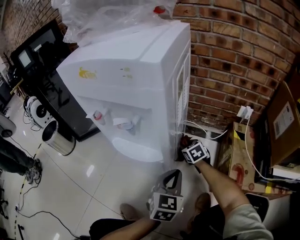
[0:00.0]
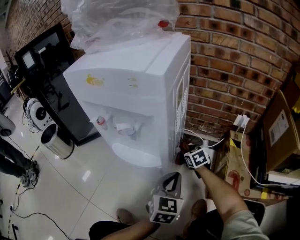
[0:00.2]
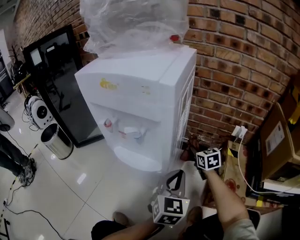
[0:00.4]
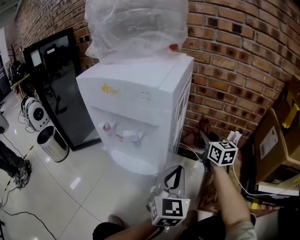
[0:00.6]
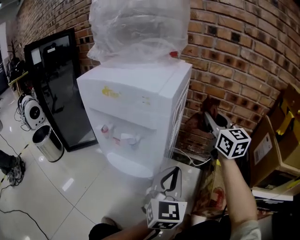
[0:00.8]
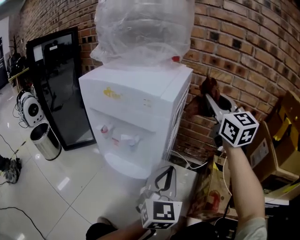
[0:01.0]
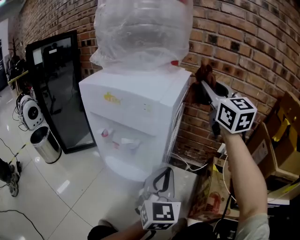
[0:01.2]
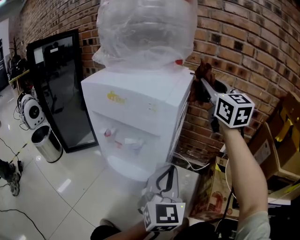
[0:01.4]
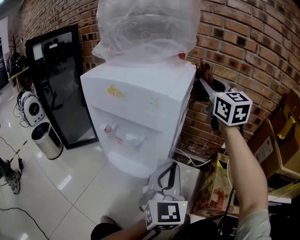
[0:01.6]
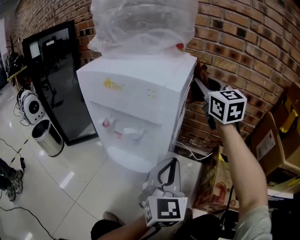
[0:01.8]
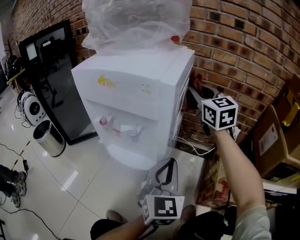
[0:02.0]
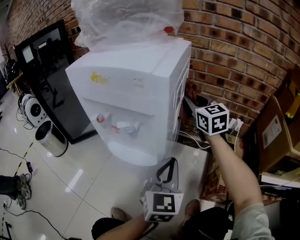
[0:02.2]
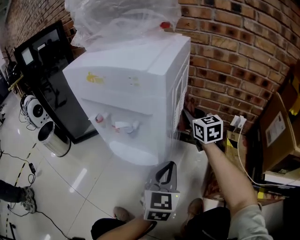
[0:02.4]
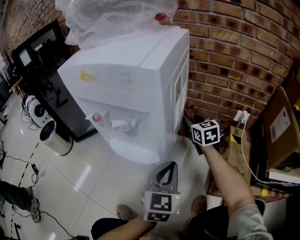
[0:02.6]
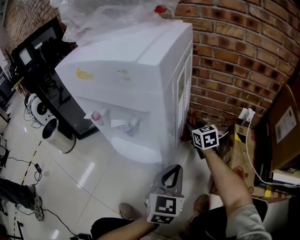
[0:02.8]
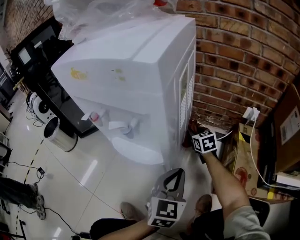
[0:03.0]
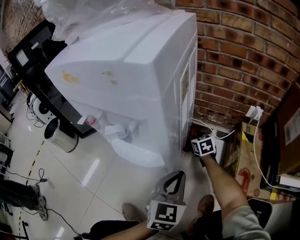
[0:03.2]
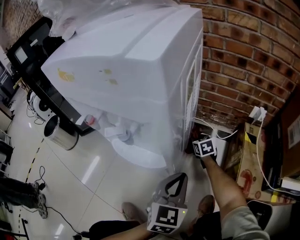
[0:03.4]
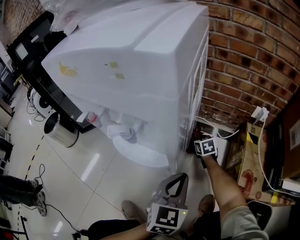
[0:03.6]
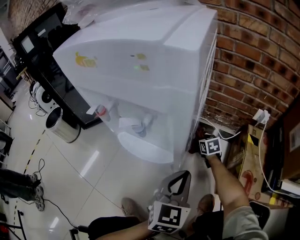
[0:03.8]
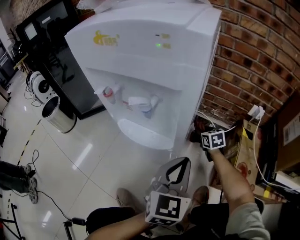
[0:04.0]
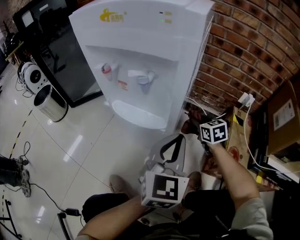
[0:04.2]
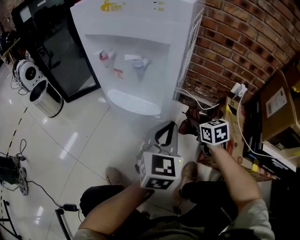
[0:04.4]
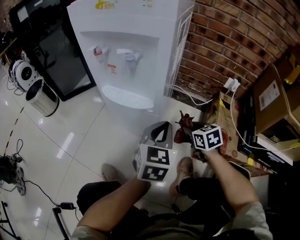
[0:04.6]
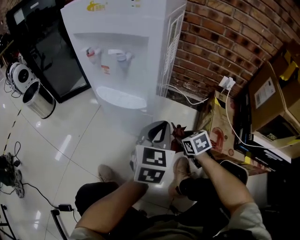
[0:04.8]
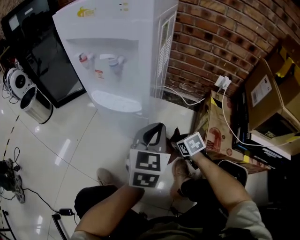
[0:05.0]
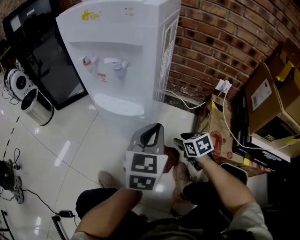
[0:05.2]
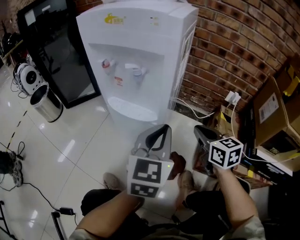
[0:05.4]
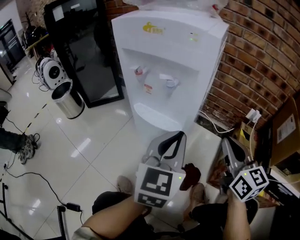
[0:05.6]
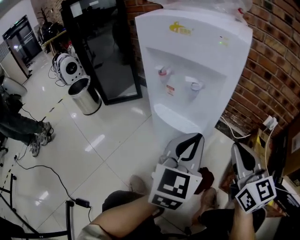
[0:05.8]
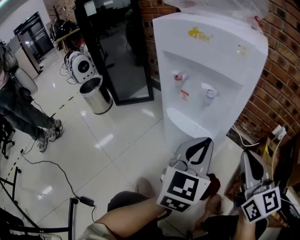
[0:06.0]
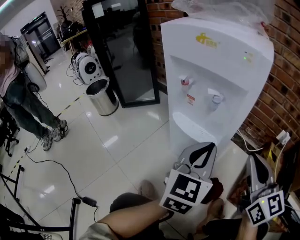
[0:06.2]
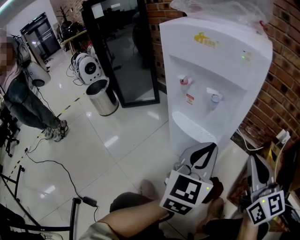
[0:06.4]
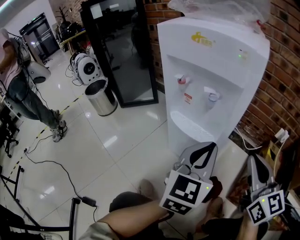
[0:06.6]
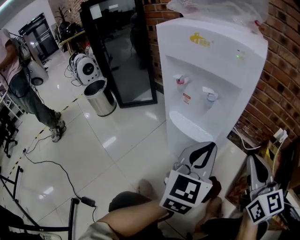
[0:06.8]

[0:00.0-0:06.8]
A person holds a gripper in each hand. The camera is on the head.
0:00.0 to 0:01.4: The right gripper travels upward by about 60 cm, and angles its fingers upward, by about 50 degrees, while the left gripper shifts roughly 20 cm upward, and swivels about 30 degrees.
0:01.4 to 0:02.8: The left gripper heads downward, covering approximately 15 cm, and rotates approximately 20 degrees, while the right gripper moves downward, about 40 cm, and angles its fingers downward, by about 40 degrees.
0:02.8 to 0:04.0: The right gripper moves downward, roughly 10 cm.
0:04.0 to 0:05.4: The right gripper shifts some 30 cm upward and backward, and opens, then closes once more. Meanwhile the left gripper is displaced upward by roughly 5 cm.
0:05.4 to 0:06.8: The right gripper moves upward and to the left, about 15 cm, and turns by approximately 20 degrees. The left gripper changes place by some 5 cm.

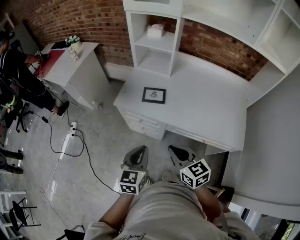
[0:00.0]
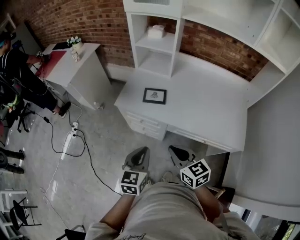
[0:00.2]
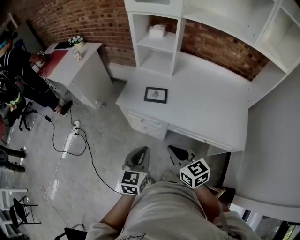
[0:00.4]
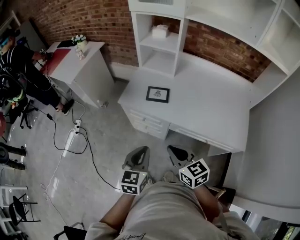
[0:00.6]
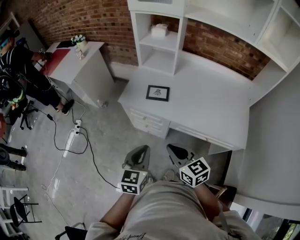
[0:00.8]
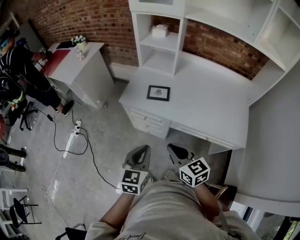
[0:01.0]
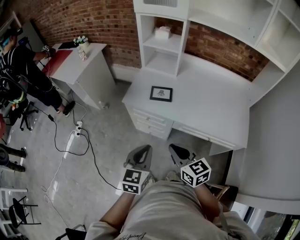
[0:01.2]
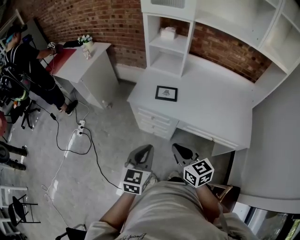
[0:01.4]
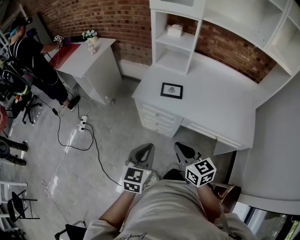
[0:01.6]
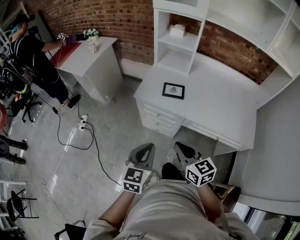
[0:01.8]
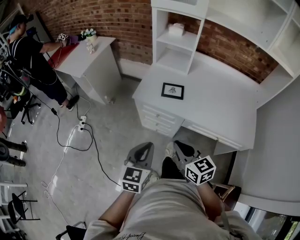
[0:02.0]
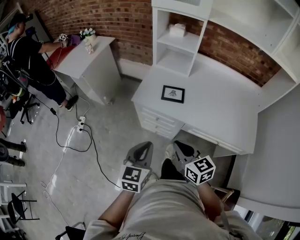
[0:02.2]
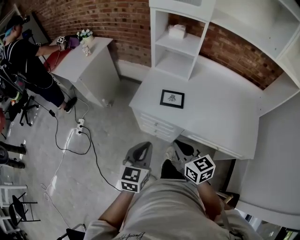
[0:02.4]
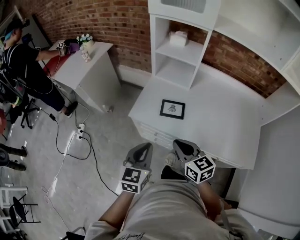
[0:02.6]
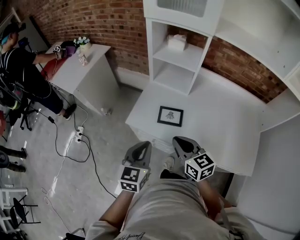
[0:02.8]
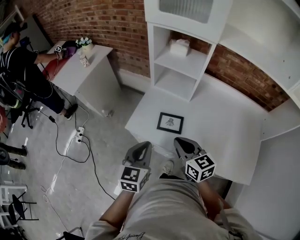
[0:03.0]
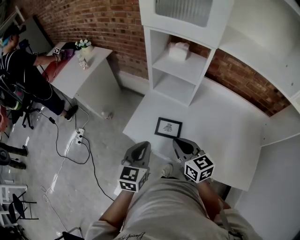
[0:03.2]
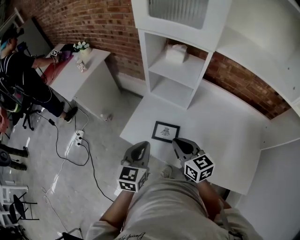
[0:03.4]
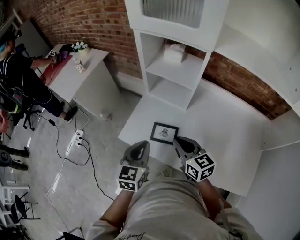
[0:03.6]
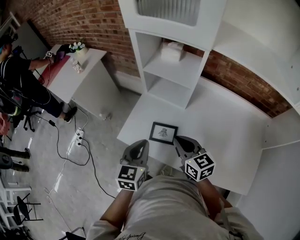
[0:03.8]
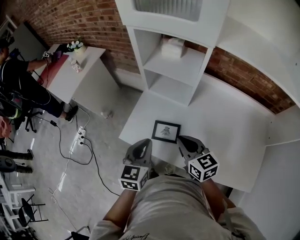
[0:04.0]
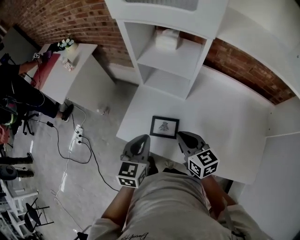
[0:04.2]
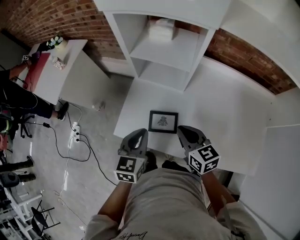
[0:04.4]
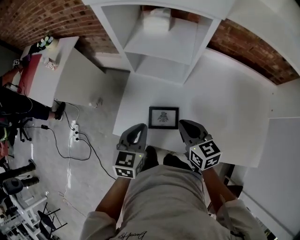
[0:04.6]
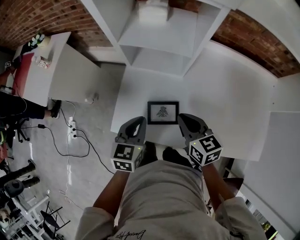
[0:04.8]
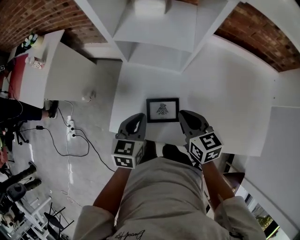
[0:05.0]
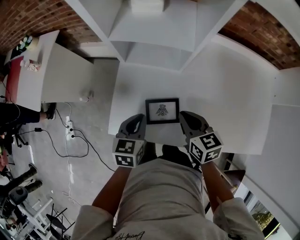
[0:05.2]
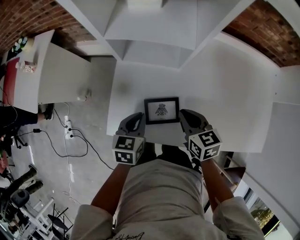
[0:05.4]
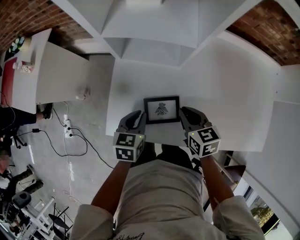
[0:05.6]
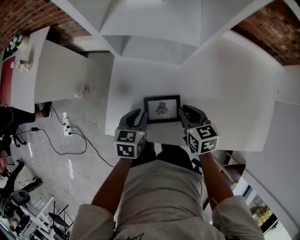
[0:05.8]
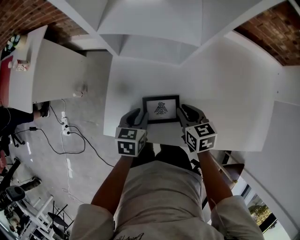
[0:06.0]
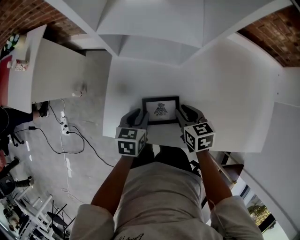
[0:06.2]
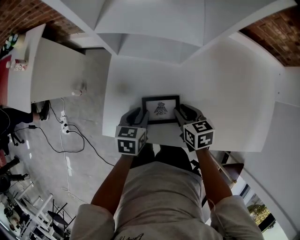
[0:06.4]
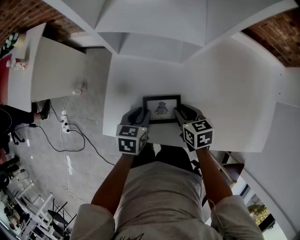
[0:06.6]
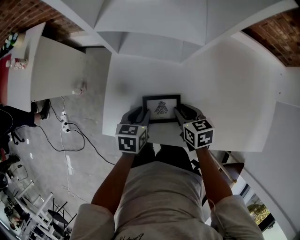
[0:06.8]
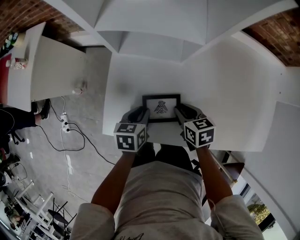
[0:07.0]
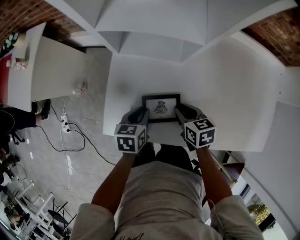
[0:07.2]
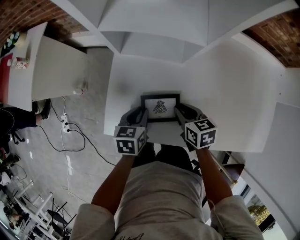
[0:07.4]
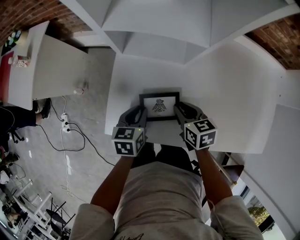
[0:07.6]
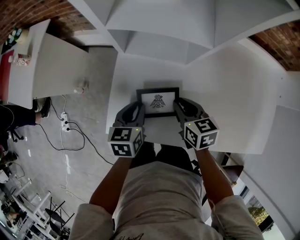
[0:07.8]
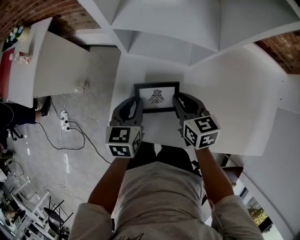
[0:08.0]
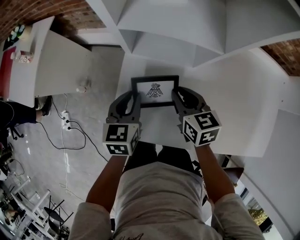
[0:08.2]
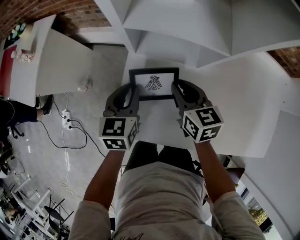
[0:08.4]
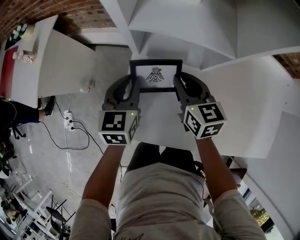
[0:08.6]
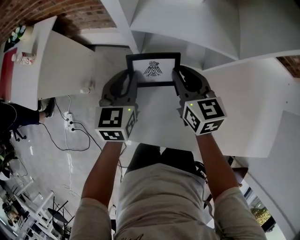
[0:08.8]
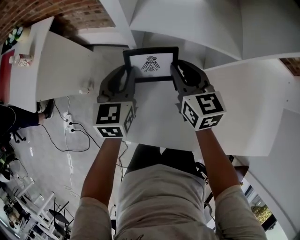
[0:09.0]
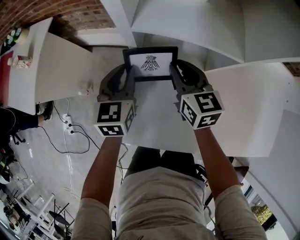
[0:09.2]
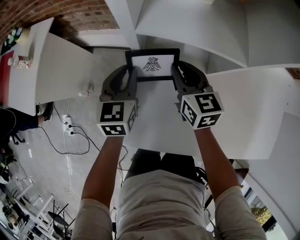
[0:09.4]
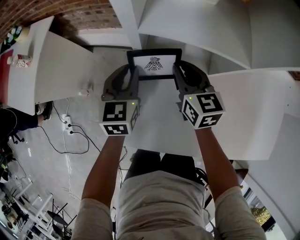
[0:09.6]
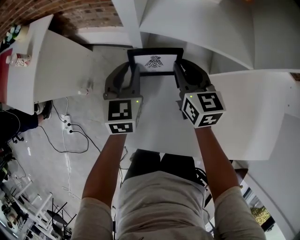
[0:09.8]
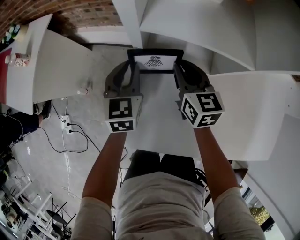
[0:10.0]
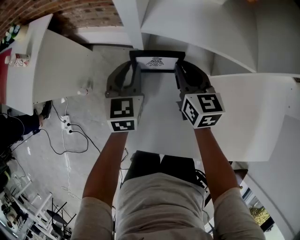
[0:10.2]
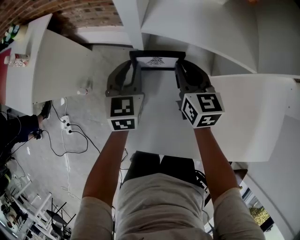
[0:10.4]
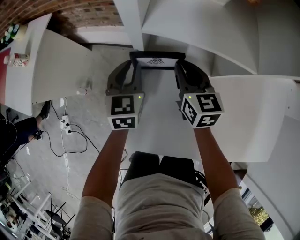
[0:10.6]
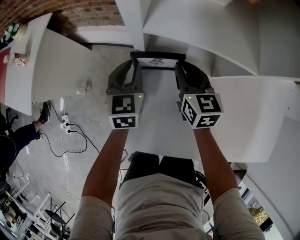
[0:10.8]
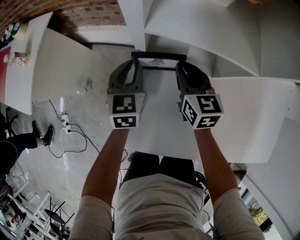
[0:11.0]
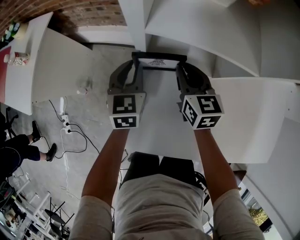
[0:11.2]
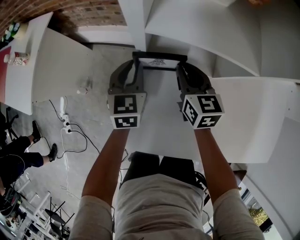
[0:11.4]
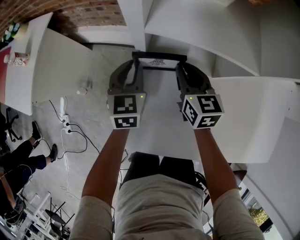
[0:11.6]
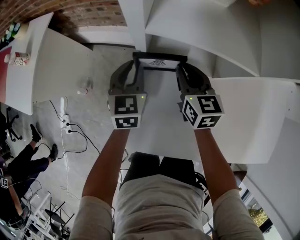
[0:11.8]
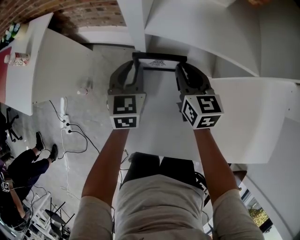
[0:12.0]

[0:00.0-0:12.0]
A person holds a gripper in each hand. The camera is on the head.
0:00.0 to 0:01.6: The left gripper is displaced to the left and backward by approximately 10 cm. The right gripper is displaced to the left by some 5 cm.
0:01.6 to 0:03.0: Both grippers travel together forward, some 25 cm.
0:03.0 to 0:04.4: The right gripper moves forward, to the right and downward, some 15 cm, while the left gripper moves forward, some 15 cm.
0:04.4 to 0:06.0: The grippers both shift downward by approximately 20 cm. The left gripper rotates about 30 degrees, and opens. Meanwhile the right gripper changes its angle by roughly 20 degrees.
0:06.0 to 0:07.6: The grippers stay close to where they were, moving slightly.
0:07.6 to 0:09.0: Both grippers move forward, upward and to the left, some 20 cm. The right gripper rotates roughly 30 degrees; the left gripper rotates roughly 30 degrees.
0:09.0 to 0:10.4: The left gripper shifts by about 5 cm. Meanwhile the right gripper changes place by about 5 cm.
0:10.4 to 0:12.0: Both grippers stay put.

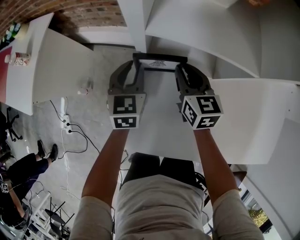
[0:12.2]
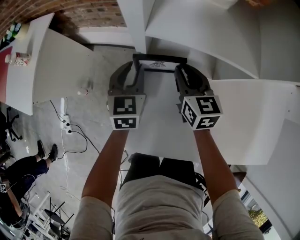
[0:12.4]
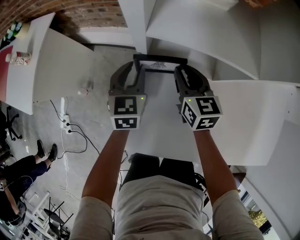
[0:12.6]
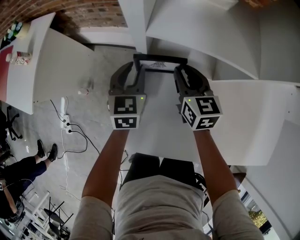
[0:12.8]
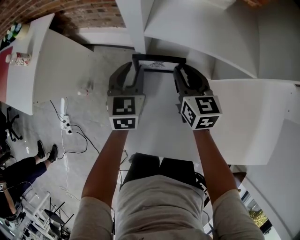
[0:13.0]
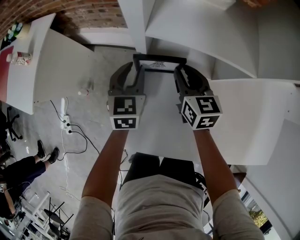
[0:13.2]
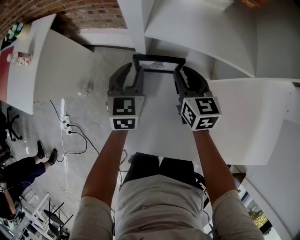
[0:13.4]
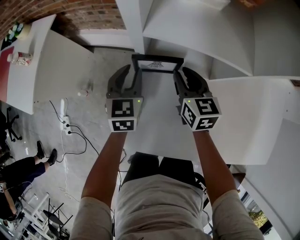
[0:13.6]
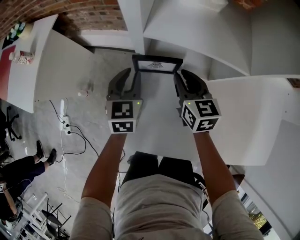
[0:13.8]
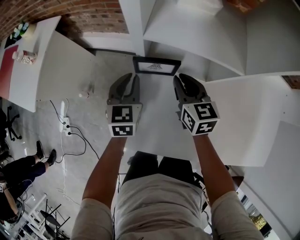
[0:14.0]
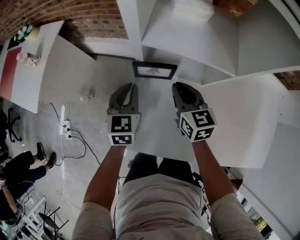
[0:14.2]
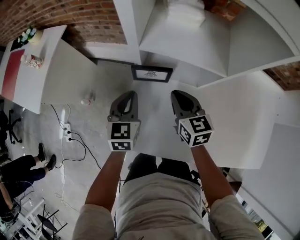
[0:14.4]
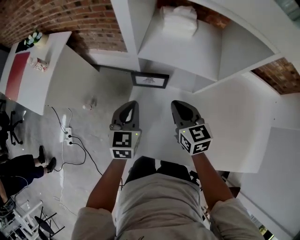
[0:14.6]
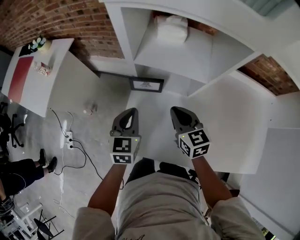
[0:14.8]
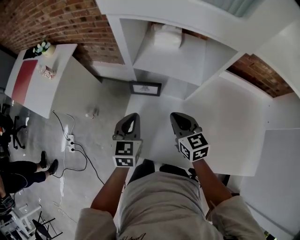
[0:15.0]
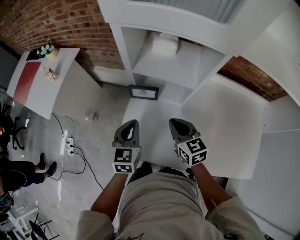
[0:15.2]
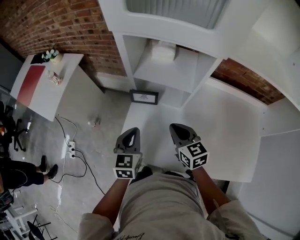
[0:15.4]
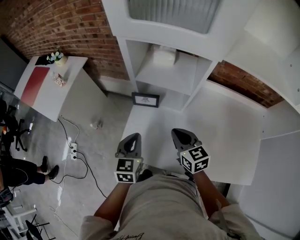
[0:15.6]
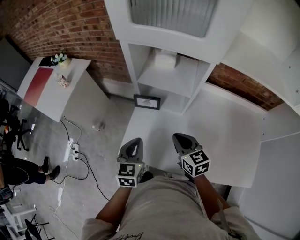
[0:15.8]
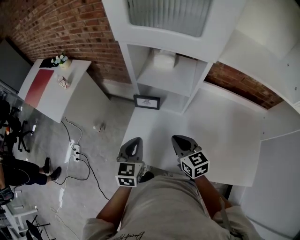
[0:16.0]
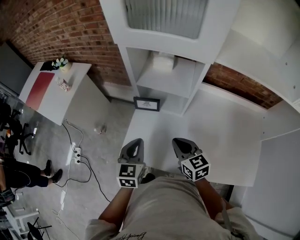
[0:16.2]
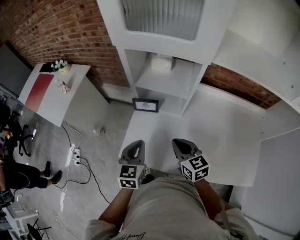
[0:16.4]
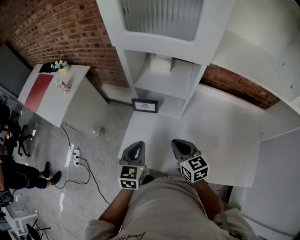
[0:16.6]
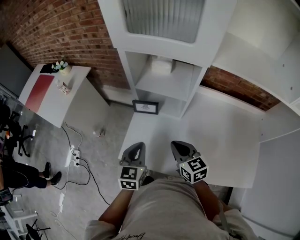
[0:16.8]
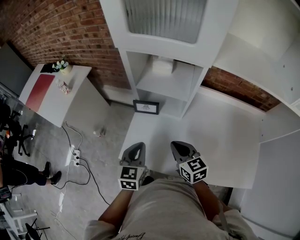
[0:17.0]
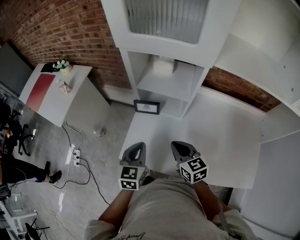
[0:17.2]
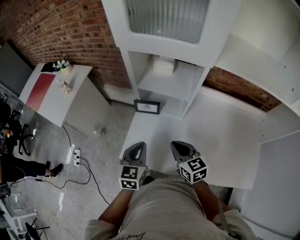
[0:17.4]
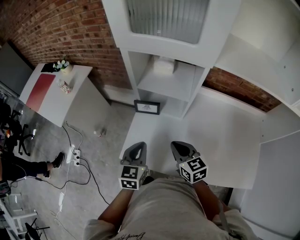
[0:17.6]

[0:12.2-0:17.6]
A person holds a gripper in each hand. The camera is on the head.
0:12.2 to 0:13.6: The grippers stay close to where they were, moving slightly.
0:13.6 to 0:15.0: Both grippers travel together backward and upward, some 20 cm. The left gripper closes.
0:15.0 to 0:16.2: Both grippers move backward and upward, about 10 cm.
0:16.2 to 0:17.6: The grippers make only small movements.
